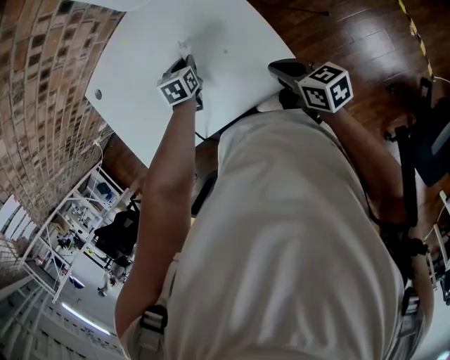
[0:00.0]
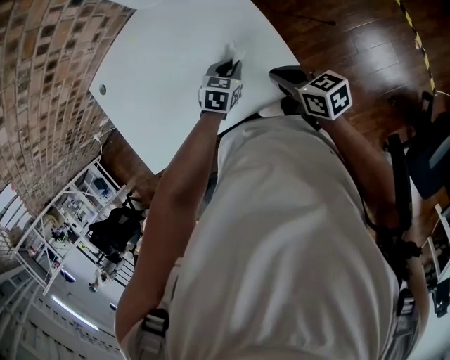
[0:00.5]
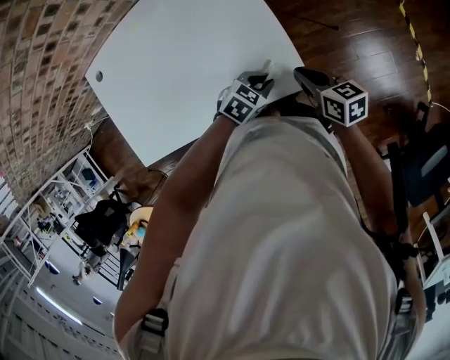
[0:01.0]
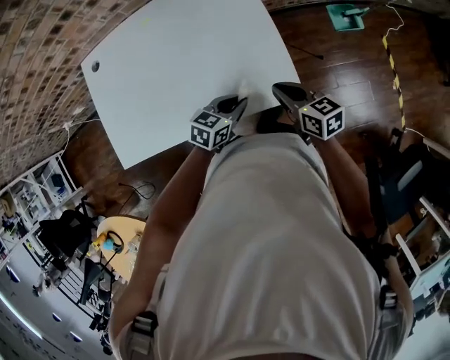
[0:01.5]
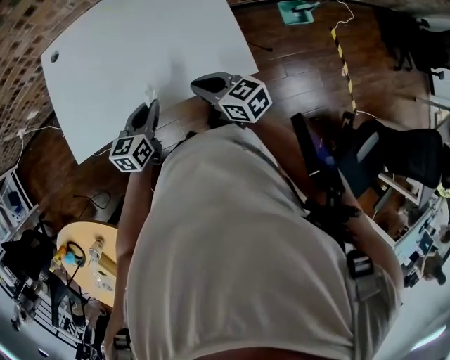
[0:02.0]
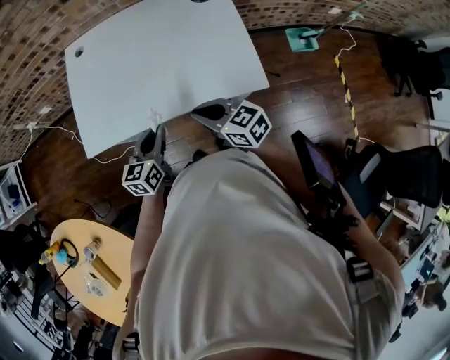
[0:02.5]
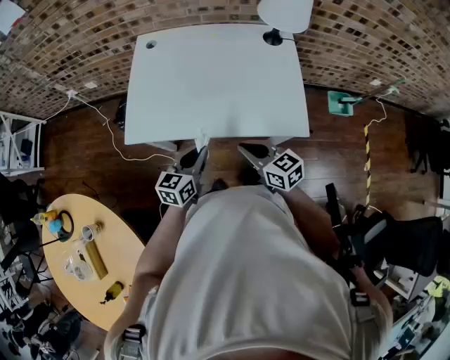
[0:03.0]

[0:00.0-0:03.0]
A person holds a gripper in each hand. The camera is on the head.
0:00.0 to 0:01.5: The left gripper moves approximately 20 cm, and rotates about 30 degrees.
0:01.5 to 0:03.0: The right gripper changes place by some 30 cm, and turns by some 30 degrees. Meanwhile the left gripper shifts by approximately 30 cm, and swivels approximately 40 degrees.

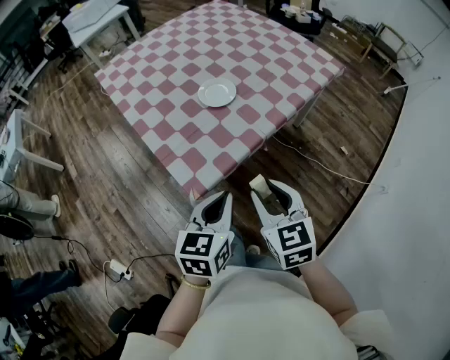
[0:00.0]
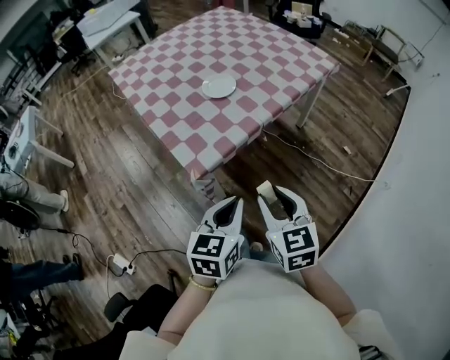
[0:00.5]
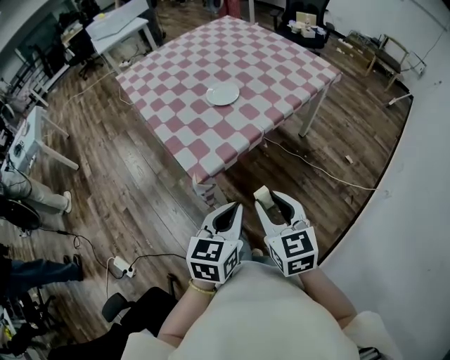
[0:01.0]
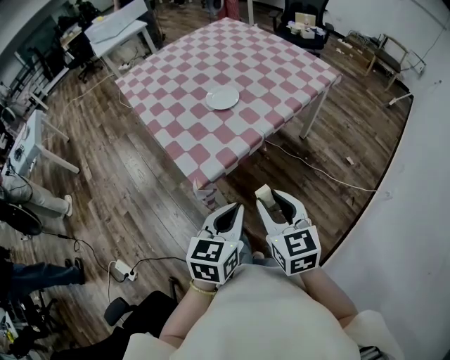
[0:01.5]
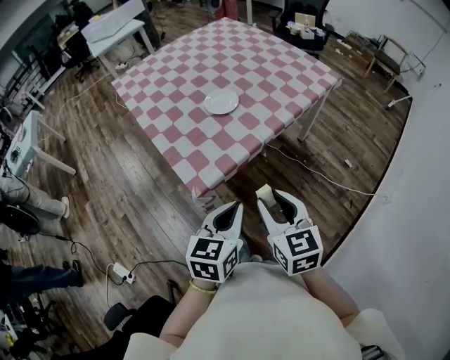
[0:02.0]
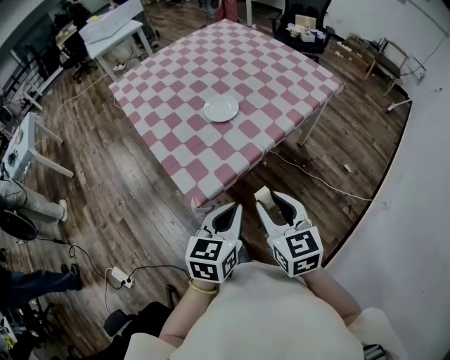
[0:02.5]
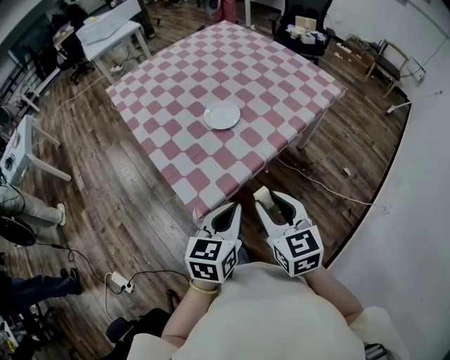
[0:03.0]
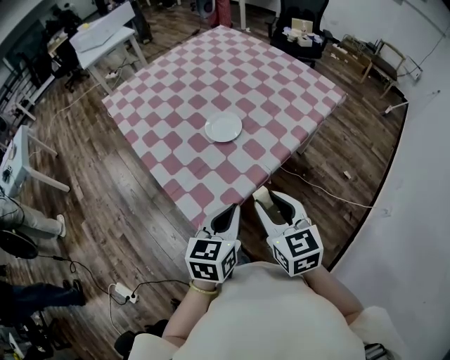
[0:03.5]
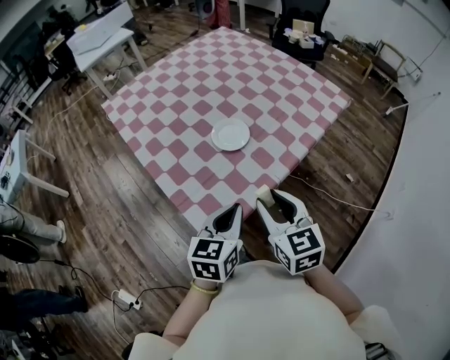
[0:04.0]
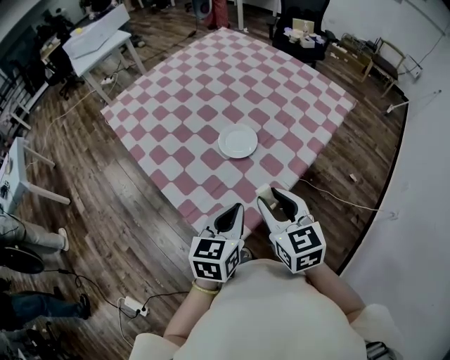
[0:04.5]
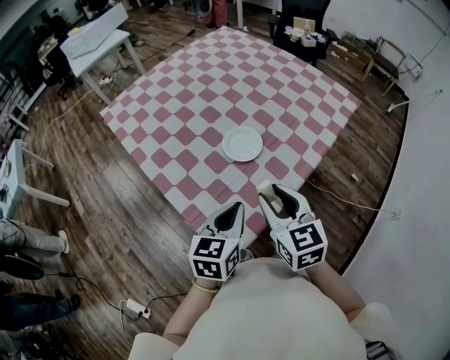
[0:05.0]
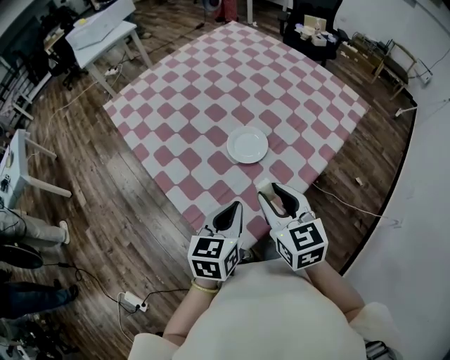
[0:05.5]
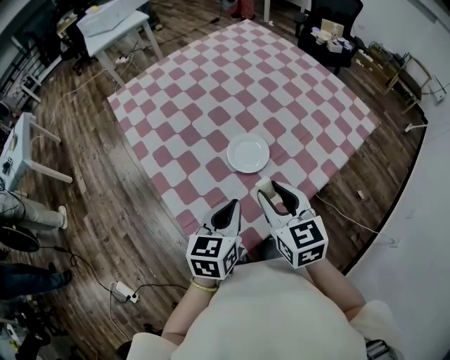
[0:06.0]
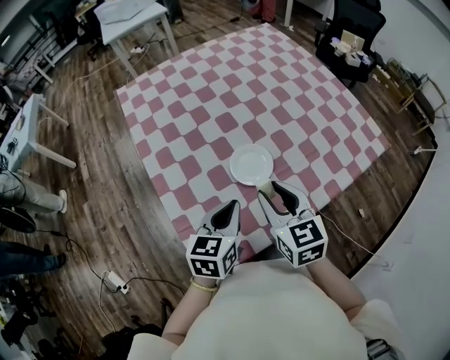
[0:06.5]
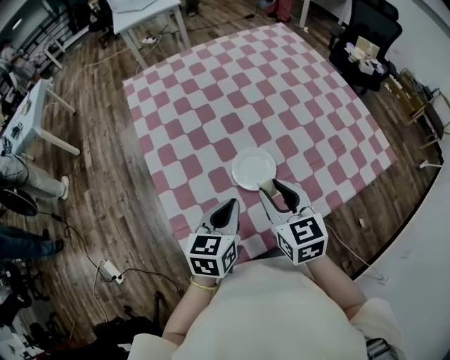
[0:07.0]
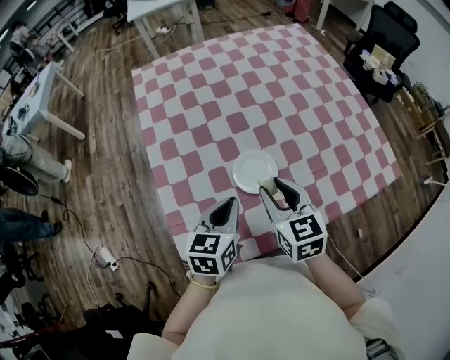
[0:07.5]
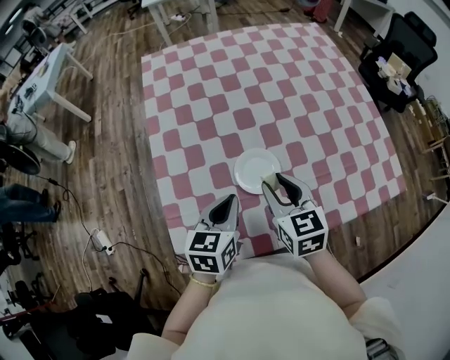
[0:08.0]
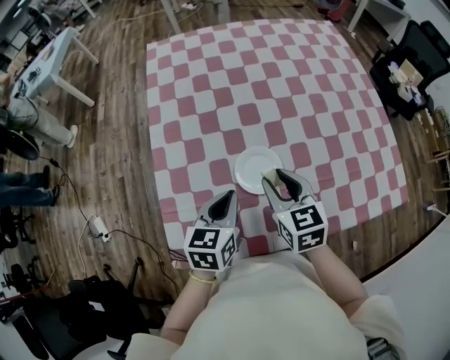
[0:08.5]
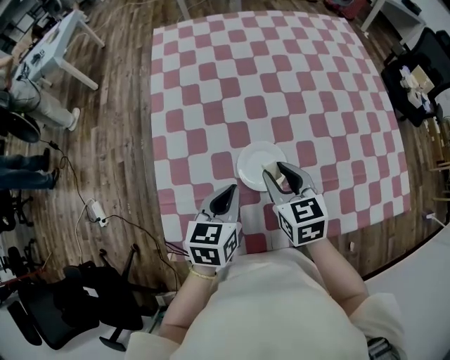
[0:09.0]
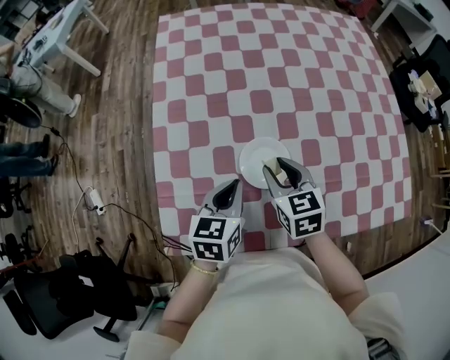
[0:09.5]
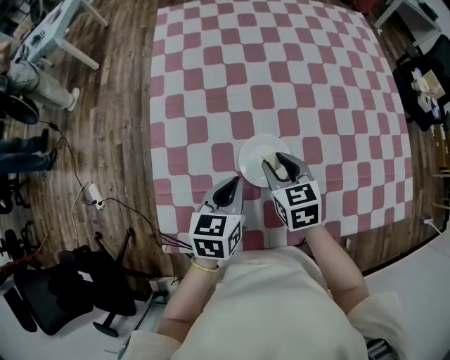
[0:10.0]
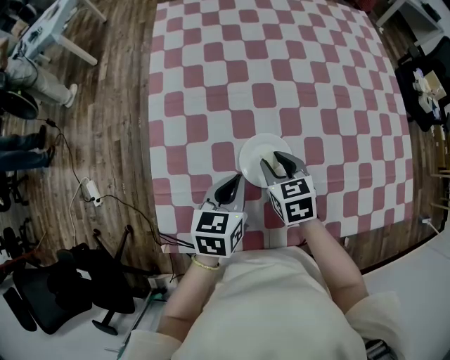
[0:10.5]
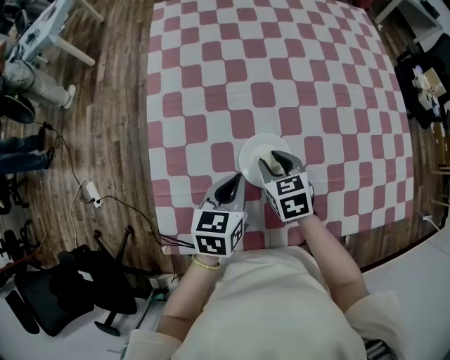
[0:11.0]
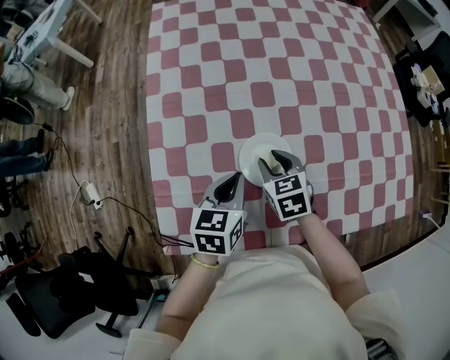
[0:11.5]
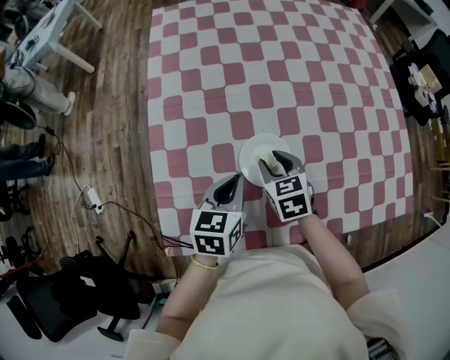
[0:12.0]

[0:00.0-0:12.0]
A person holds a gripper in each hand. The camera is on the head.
0:00.0 to 0:02.0: The grippers both shift backward by about 5 cm.
0:02.0 to 0:04.0: The two grippers go roughly 20 cm forward.
0:04.0 to 0:06.0: Both grippers move forward, approximately 15 cm.
0:06.0 to 0:08.0: The two grippers go approximately 10 cm forward. The left gripper turns by roughly 20 degrees, while the right gripper rotates roughly 20 degrees.
0:08.0 to 0:10.0: The right gripper is displaced downward and forward by approximately 10 cm. The left gripper goes roughly 5 cm downward.
0:10.0 to 0:12.0: The grippers stay close to where they were, moving slightly.

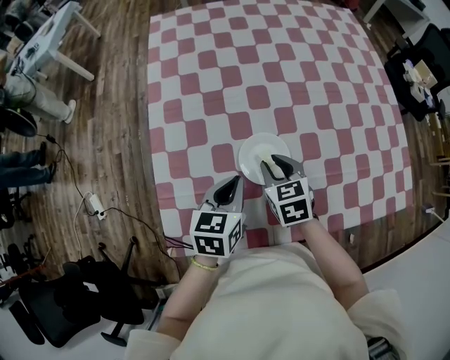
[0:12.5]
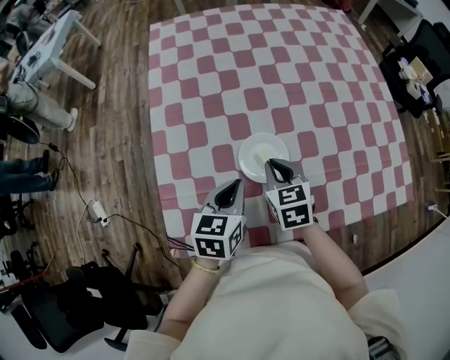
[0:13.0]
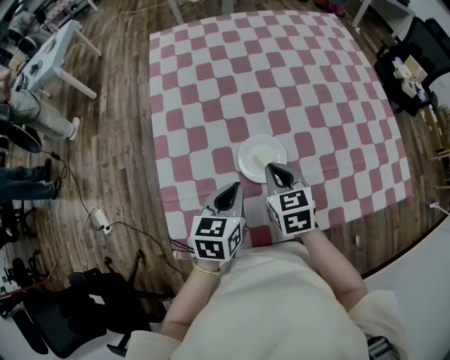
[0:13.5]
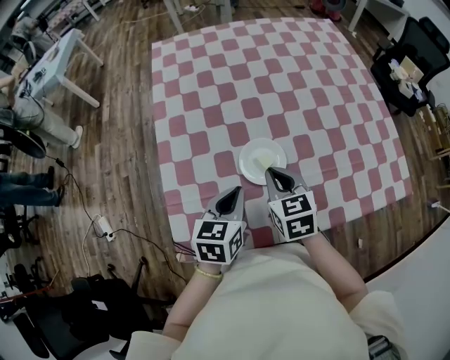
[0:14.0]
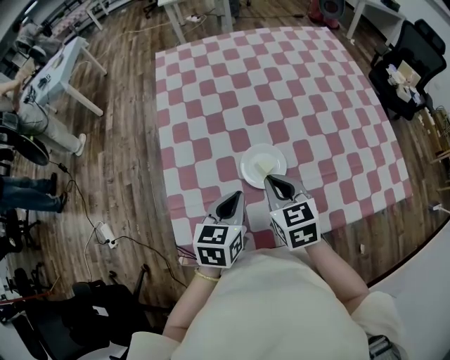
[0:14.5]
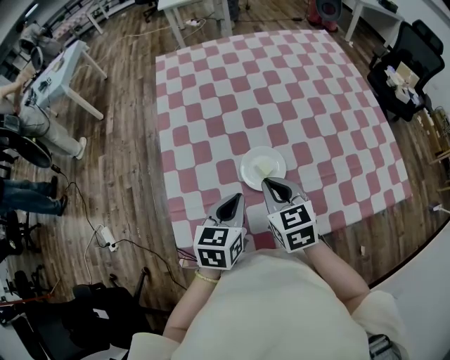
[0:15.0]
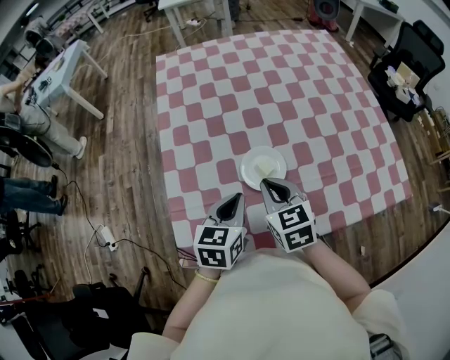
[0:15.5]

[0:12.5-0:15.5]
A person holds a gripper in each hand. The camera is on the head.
0:12.5 to 0:14.0: The right gripper moves upward, about 5 cm, and closes up.
0:14.0 to 0:15.5: The grippers make only small movements.

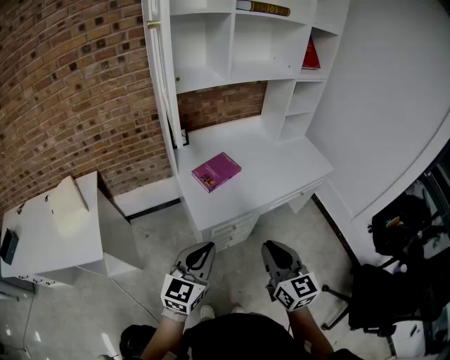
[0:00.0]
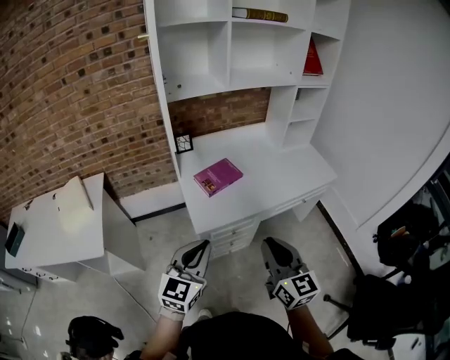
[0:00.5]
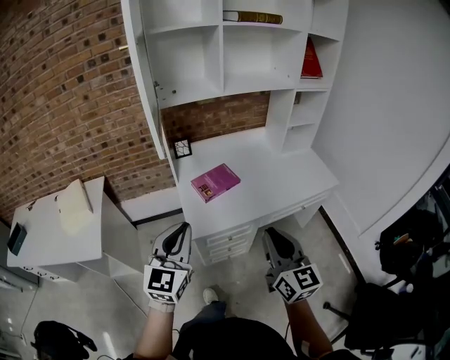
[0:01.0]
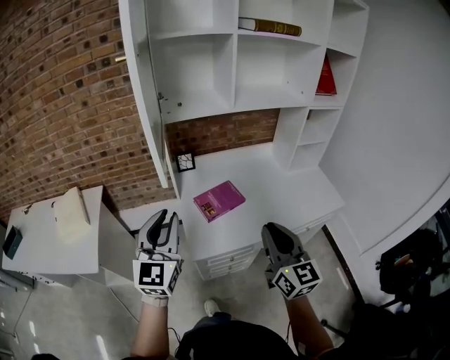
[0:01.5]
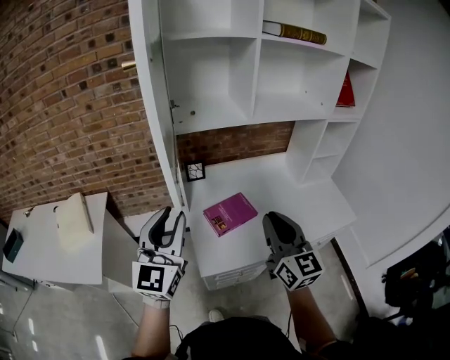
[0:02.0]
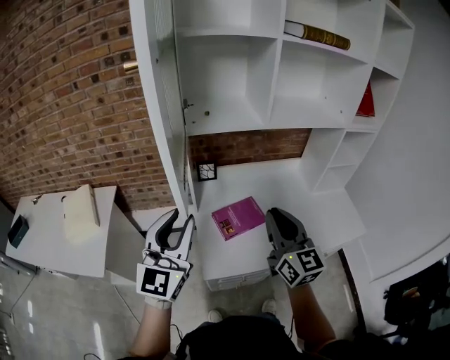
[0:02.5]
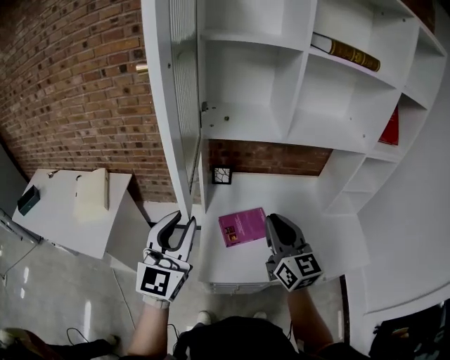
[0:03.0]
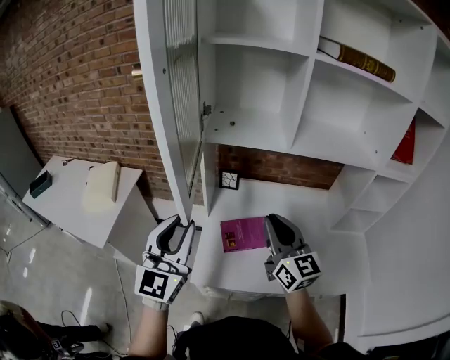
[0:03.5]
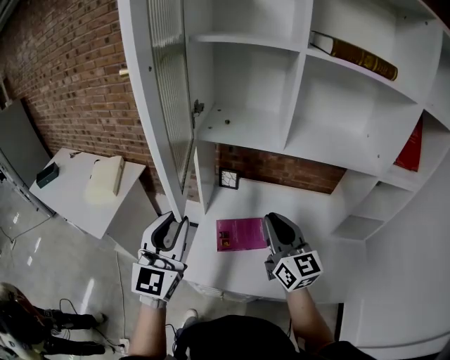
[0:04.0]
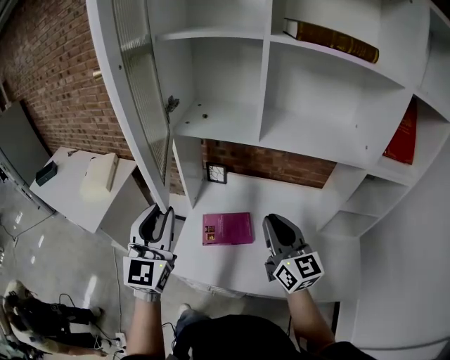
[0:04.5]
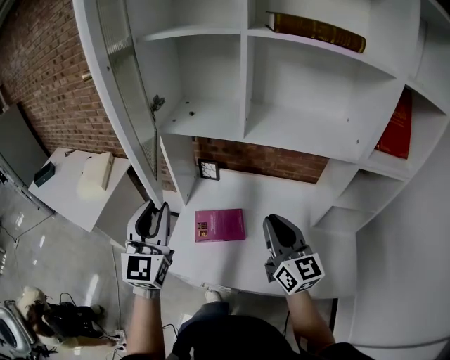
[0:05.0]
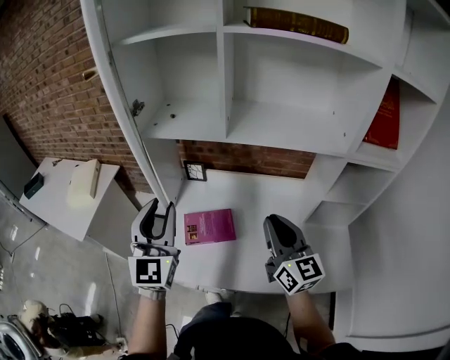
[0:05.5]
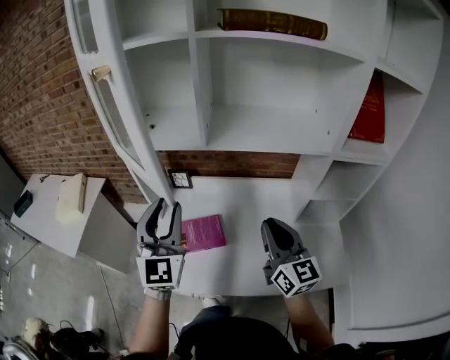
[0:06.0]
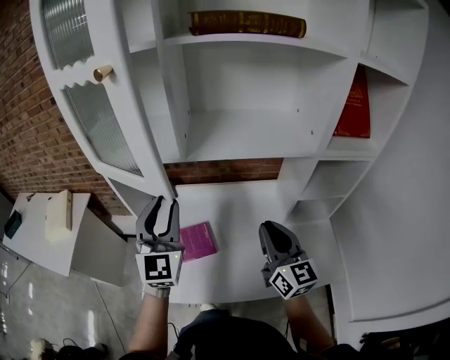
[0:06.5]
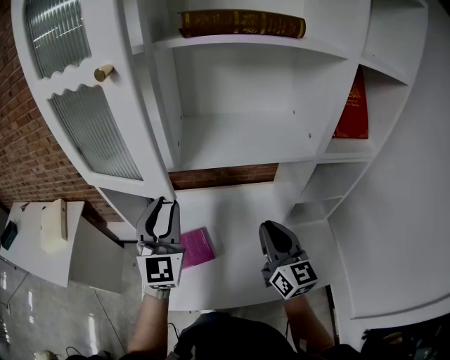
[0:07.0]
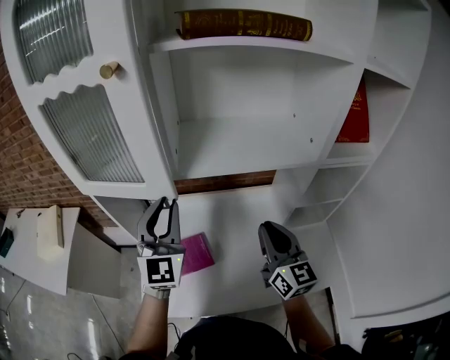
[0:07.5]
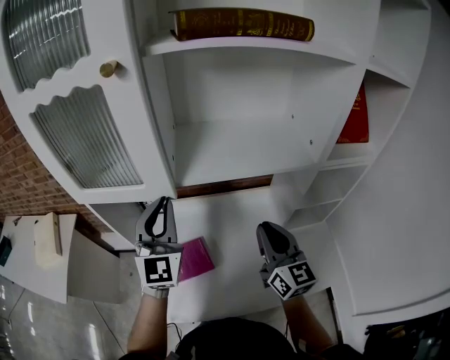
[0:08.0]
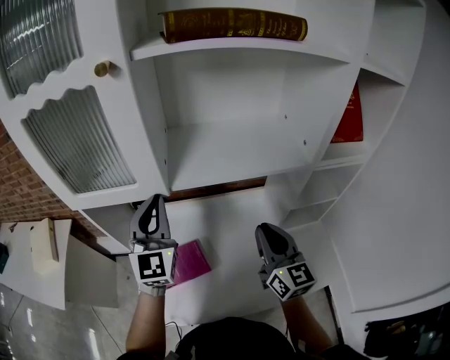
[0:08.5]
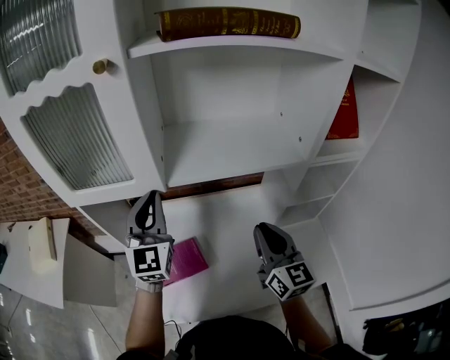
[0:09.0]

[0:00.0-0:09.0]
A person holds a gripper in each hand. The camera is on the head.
0:00.0 to 0:02.0: The right gripper goes some 25 cm forward. Meanwhile the left gripper is displaced forward and upward by approximately 25 cm, turns by approximately 30 degrees, and opens up.
0:02.0 to 0:04.5: The left gripper changes place by about 15 cm, and turns by some 30 degrees. The right gripper moves about 20 cm, and rotates some 30 degrees.
0:04.5 to 0:07.0: The left gripper travels to the right and forward by approximately 25 cm. The right gripper shifts about 15 cm to the right.
0:07.0 to 0:09.0: The left gripper is displaced forward by some 10 cm, and closes up.
